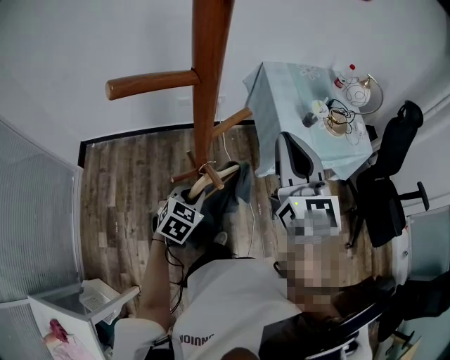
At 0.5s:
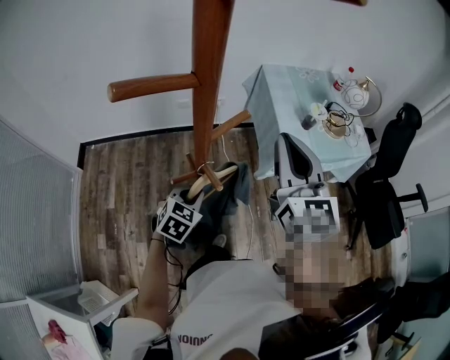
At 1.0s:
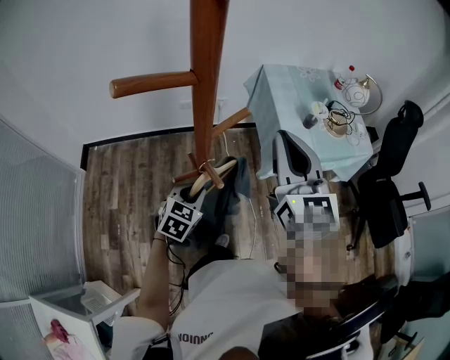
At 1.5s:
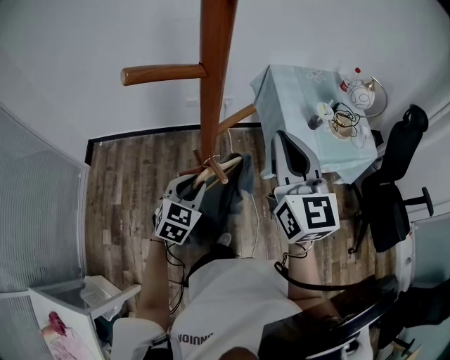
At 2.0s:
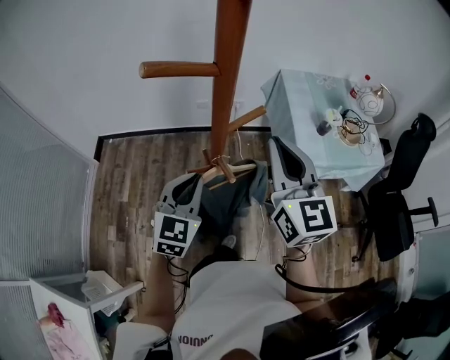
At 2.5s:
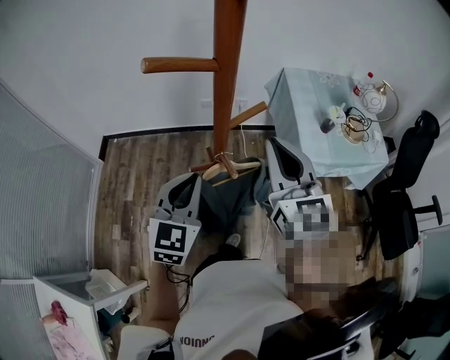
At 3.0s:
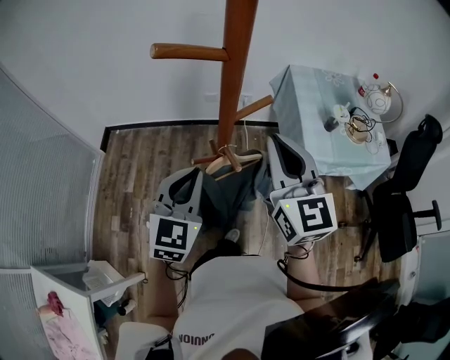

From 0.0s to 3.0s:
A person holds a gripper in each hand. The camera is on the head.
From 0.0s to 1.5s: The grippers stay close to where they were, moving slightly.
From 1.5s to 3.0s: The left gripper heads upward, covering approximately 15 cm. The right gripper moves approximately 5 cm.

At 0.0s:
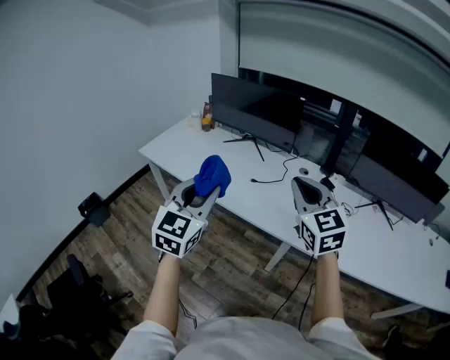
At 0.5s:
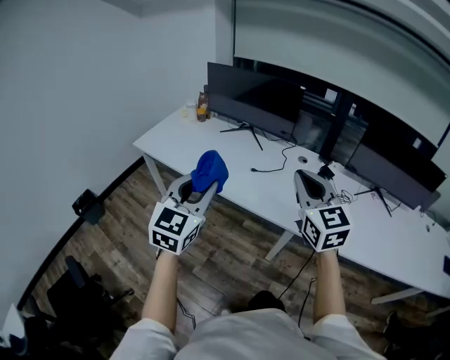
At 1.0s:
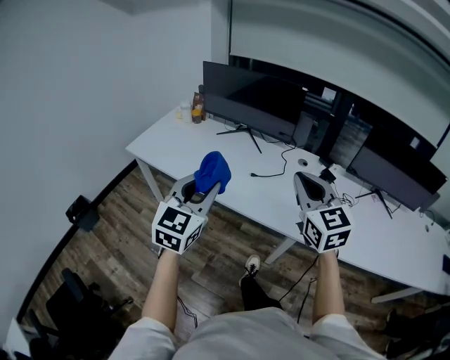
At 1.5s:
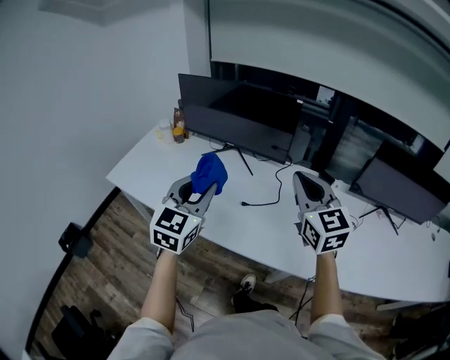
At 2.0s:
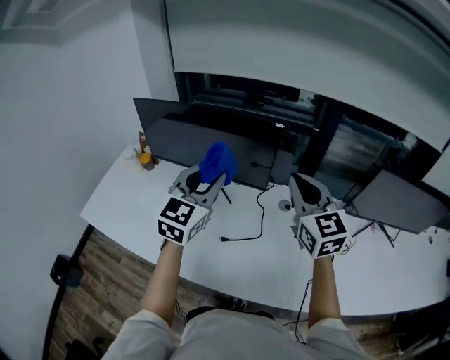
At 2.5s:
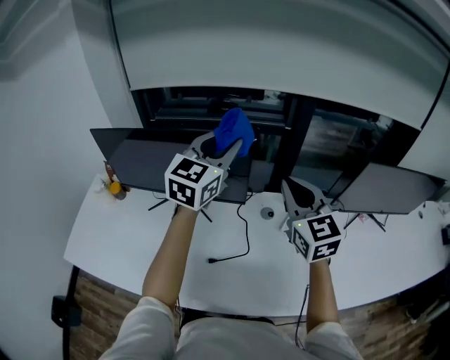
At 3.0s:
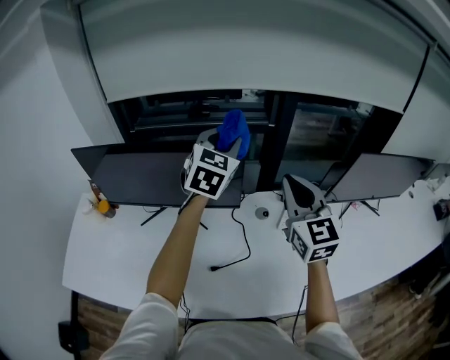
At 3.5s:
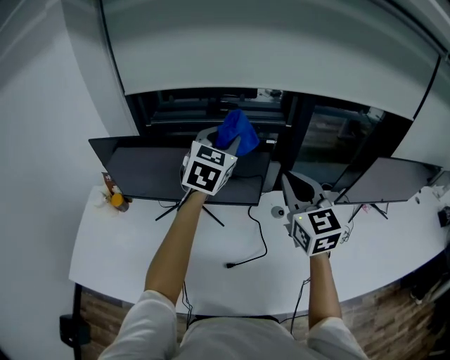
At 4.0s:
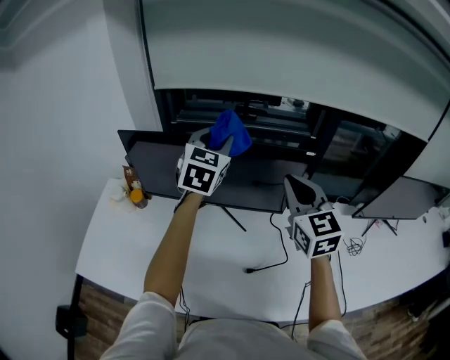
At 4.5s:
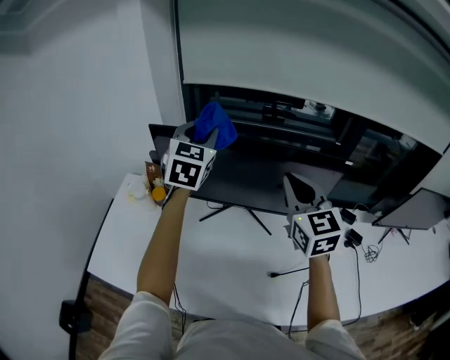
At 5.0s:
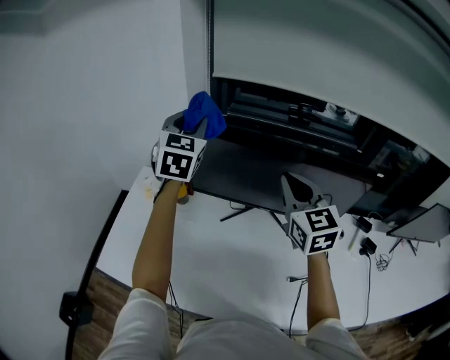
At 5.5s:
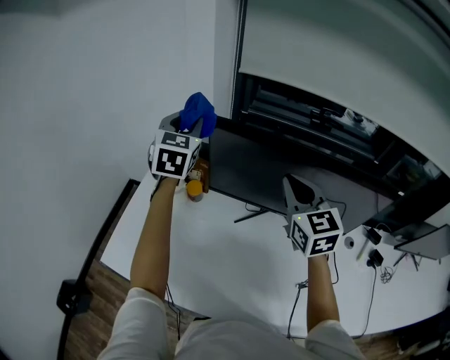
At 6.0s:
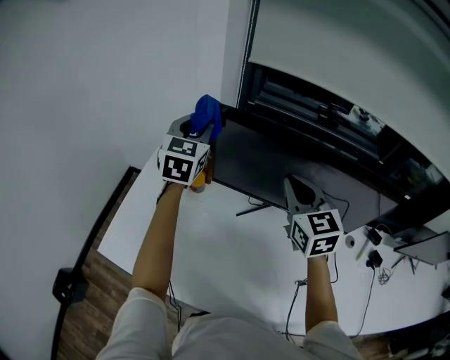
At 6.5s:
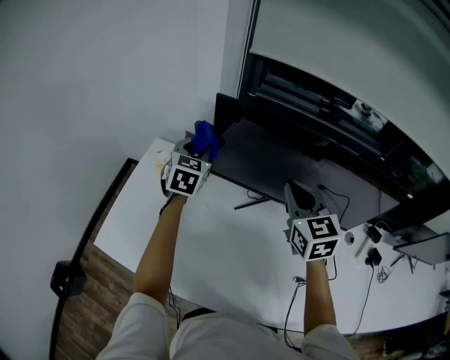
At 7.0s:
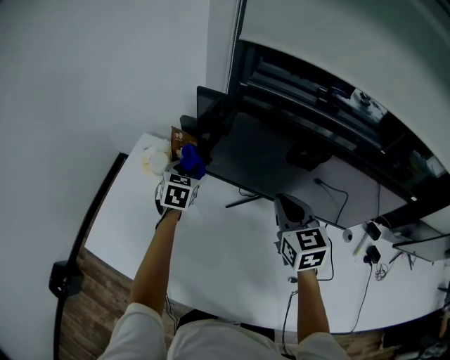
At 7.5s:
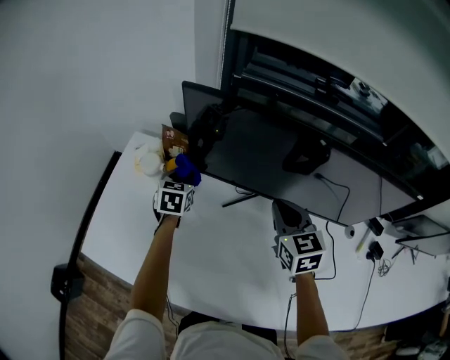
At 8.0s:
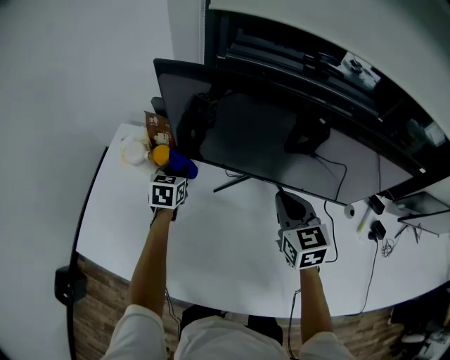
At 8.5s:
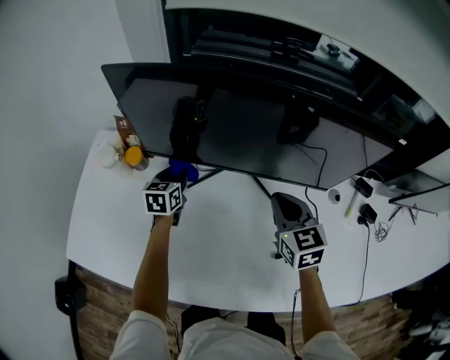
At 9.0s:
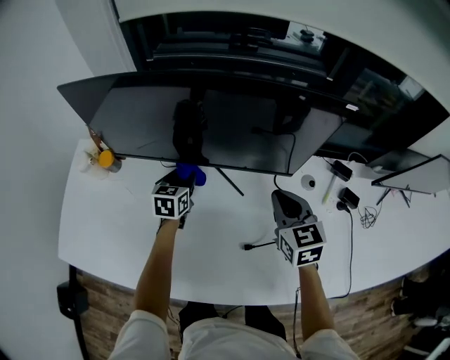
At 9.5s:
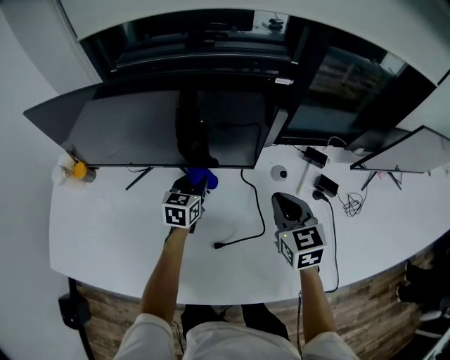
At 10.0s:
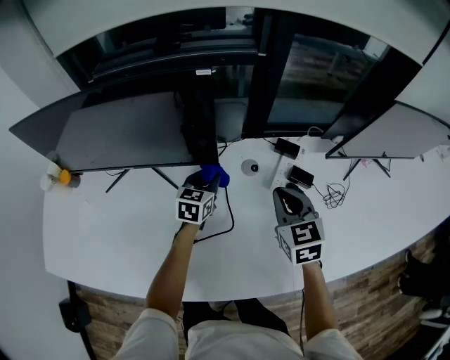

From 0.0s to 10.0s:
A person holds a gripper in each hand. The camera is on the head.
From 0.0s to 2.0s: The pair of grippers is taken forward, roughly 50 cm.
From 2.0s to 4.0s: The right gripper moves to the left and forward, about 20 cm; the left gripper shifts approximately 25 cm forward and to the left.
From 4.0s to 6.0s: The left gripper goes about 40 cm to the left. The right gripper travels to the left and forward by some 30 cm.
From 6.0s to 8.0s: The right gripper moves downward and to the right, about 20 cm. The left gripper moves downward, roughly 35 cm, and rotates roughly 30 degrees.
From 8.0s to 10.0s: The two grippers travel together, to the right, roughly 50 cm. The left gripper swivels about 30 degrees.

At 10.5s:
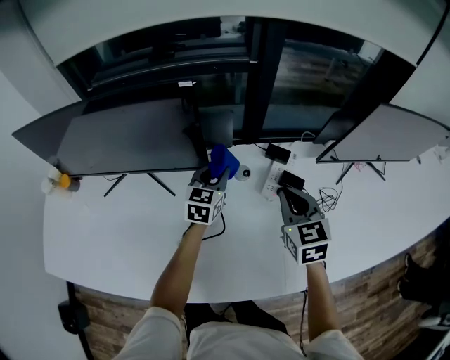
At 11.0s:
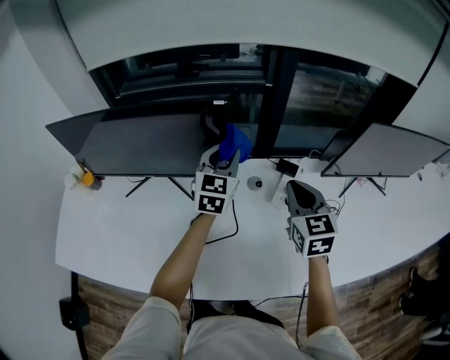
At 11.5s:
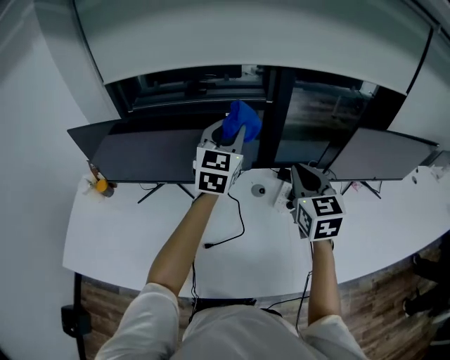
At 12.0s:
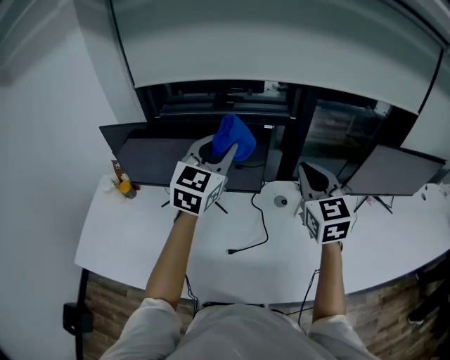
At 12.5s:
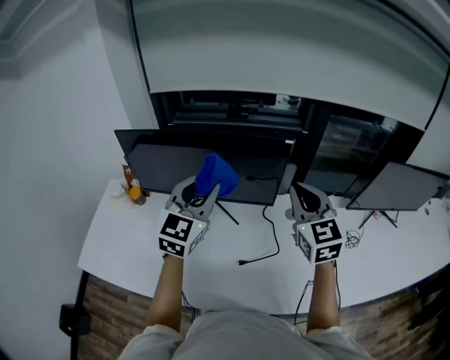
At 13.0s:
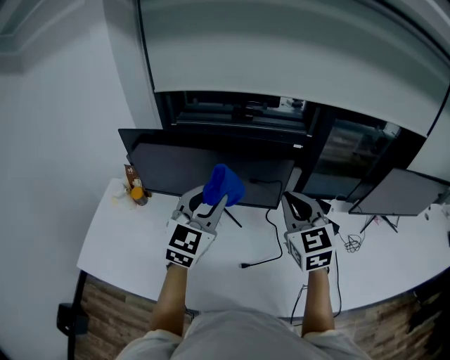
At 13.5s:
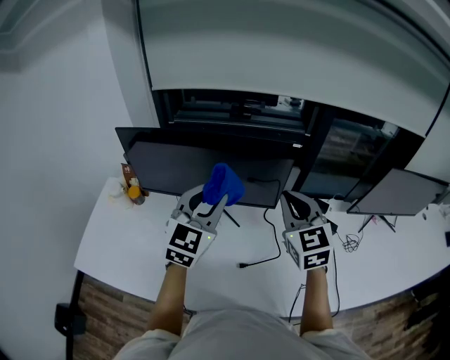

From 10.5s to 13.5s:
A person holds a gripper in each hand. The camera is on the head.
From 10.5s to 12.0s: The two grippers go approximately 35 cm upward and to the left. The right gripper changes its angle by roughly 20 degrees. The left gripper swivels approximately 30 degrees.
From 12.0s to 13.5s: The left gripper moves to the left, backward and downward, some 15 cm, while the right gripper moves to the left, approximately 10 cm.

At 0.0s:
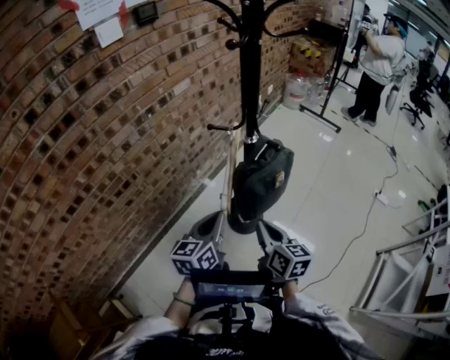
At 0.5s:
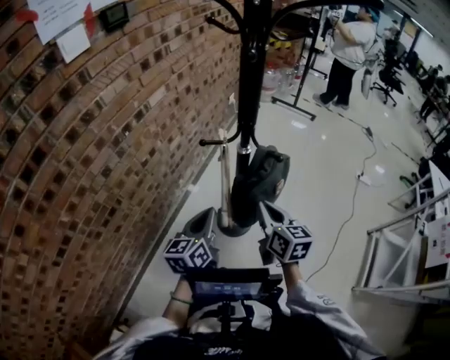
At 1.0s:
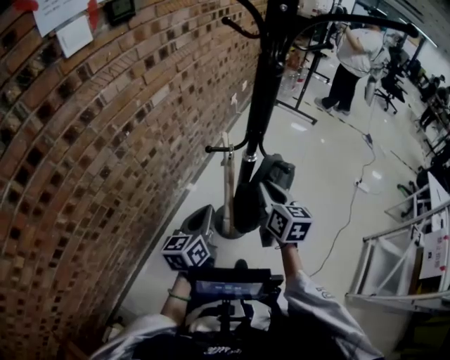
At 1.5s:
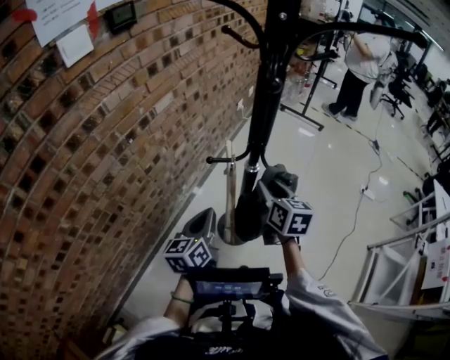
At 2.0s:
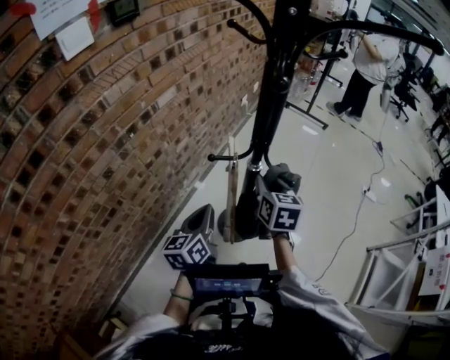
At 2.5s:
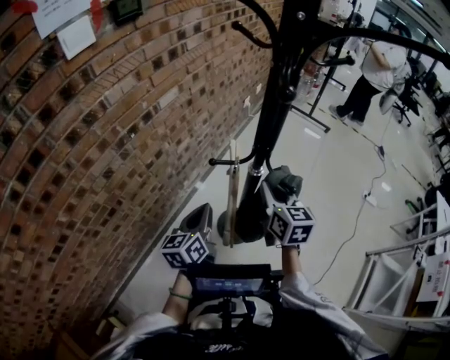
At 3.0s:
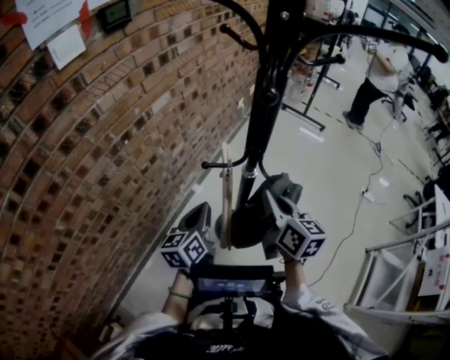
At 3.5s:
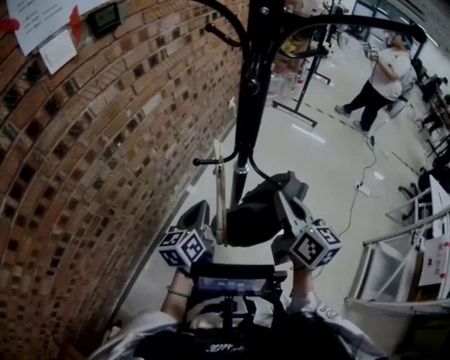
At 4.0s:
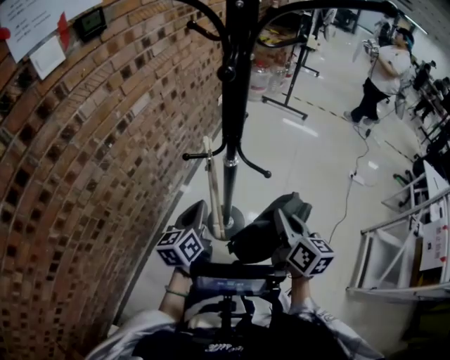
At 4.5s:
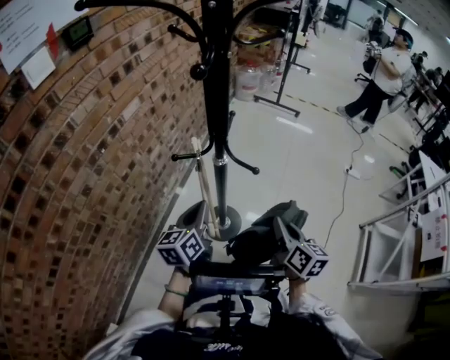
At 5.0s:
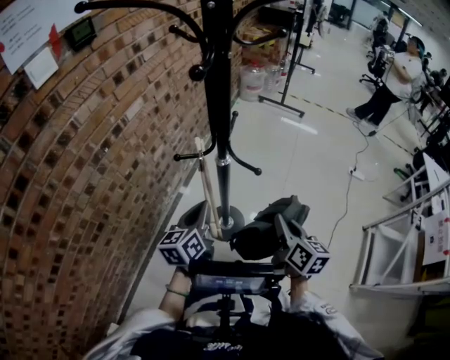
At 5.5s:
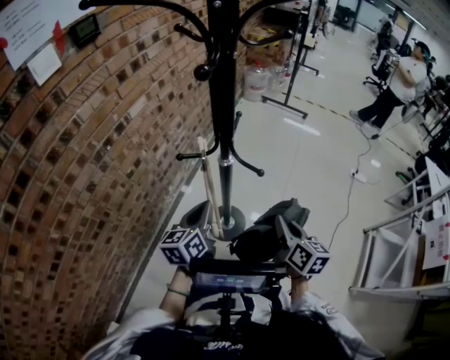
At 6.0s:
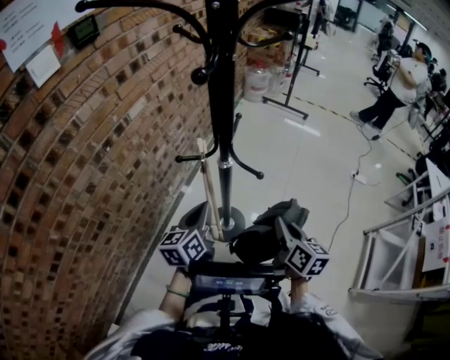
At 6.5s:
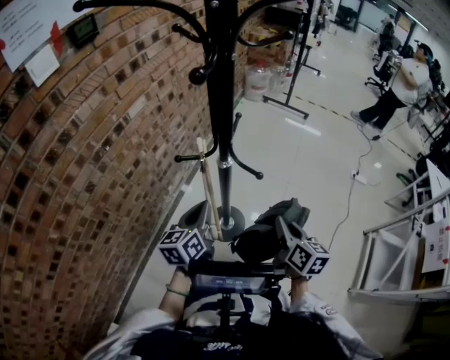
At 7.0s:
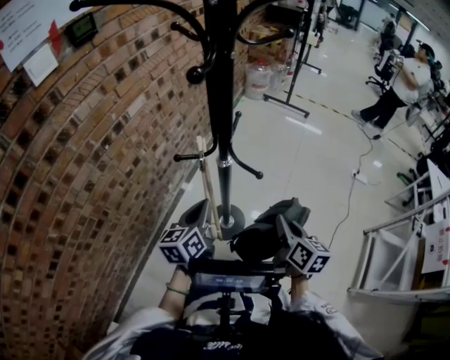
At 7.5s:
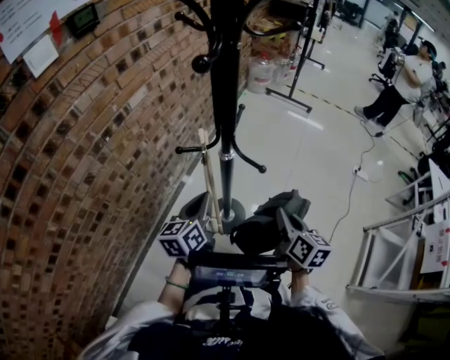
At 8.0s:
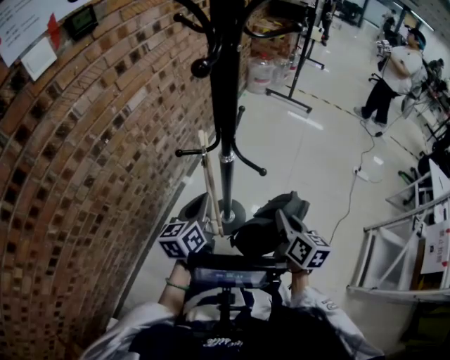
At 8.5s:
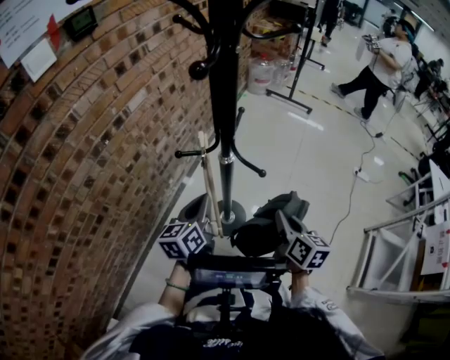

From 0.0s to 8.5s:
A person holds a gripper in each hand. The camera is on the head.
From 0.0s to 2.0s: The right gripper is displaced forward by approximately 25 cm, changes its angle by approximately 20 degrees, and opens its fingers. Meanwhile the left gripper is displaced forward and to the left by some 15 cm.
From 2.0s to 4.0s: The right gripper is displaced backward and to the right by roughly 15 cm, and swivels about 20 degrees.
From 4.0s to 6.5s: The right gripper travels downward by about 5 cm.
From 6.5s to 8.5s: The grippers move only a little.

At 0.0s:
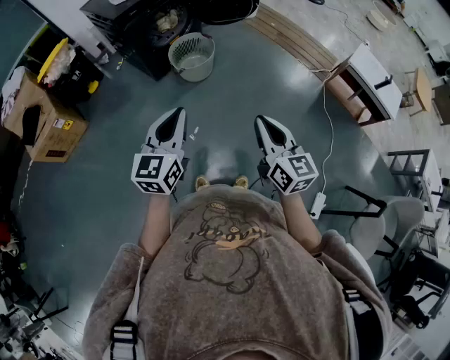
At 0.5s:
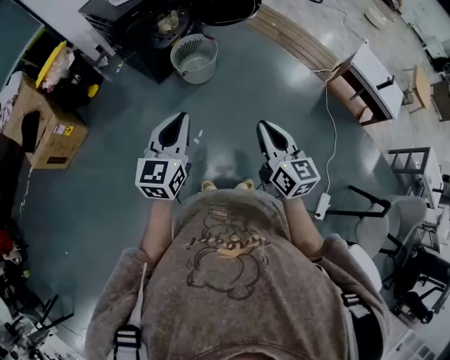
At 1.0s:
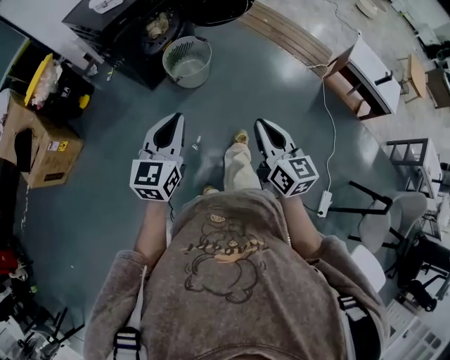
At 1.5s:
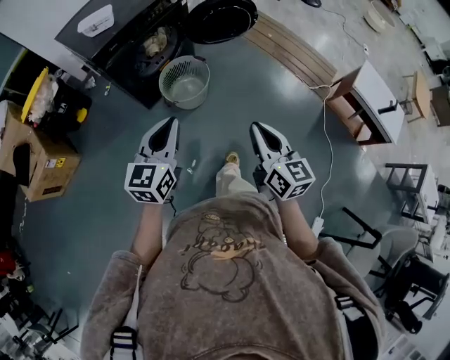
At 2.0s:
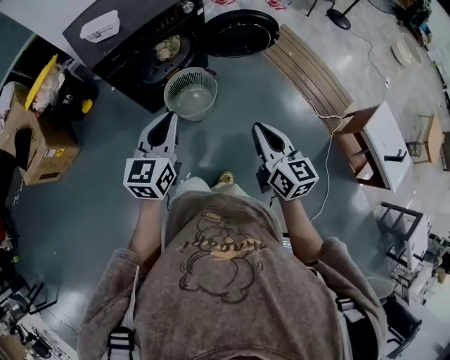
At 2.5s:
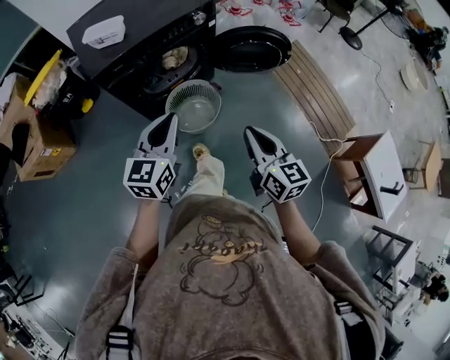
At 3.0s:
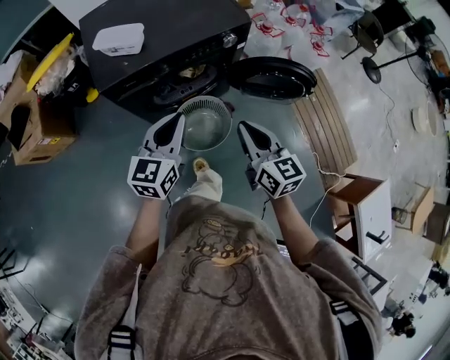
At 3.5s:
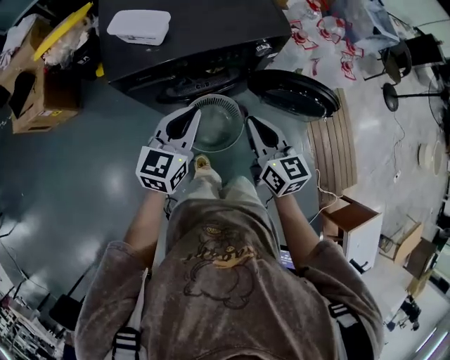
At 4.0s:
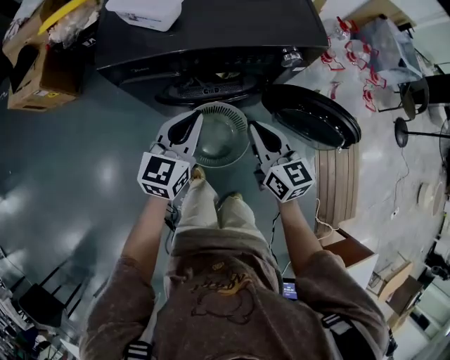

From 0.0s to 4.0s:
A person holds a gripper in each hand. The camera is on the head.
From 0.0s to 2.0s: Both grippers move forward, some 40 cm.
From 2.0s to 4.0s: The right gripper shifts by roughly 50 cm, and turns by some 40 degrees; the left gripper moves some 35 cm, and changes its angle by about 20 degrees.
